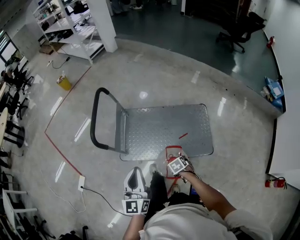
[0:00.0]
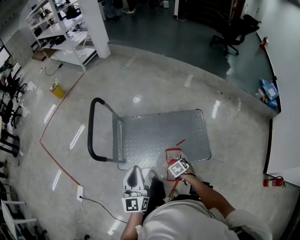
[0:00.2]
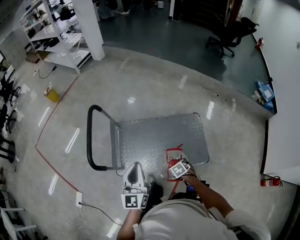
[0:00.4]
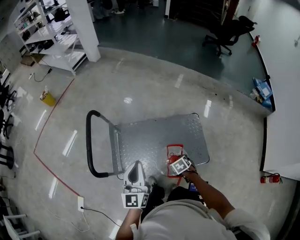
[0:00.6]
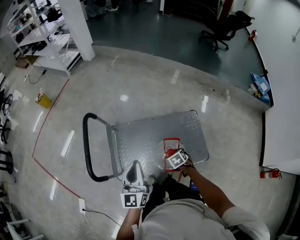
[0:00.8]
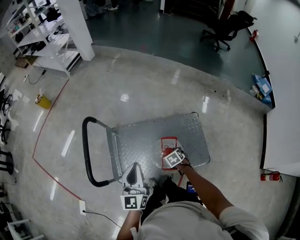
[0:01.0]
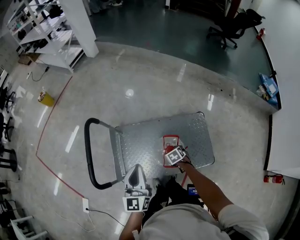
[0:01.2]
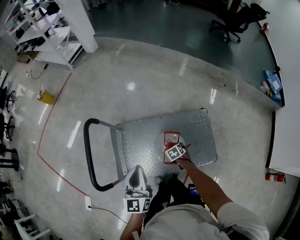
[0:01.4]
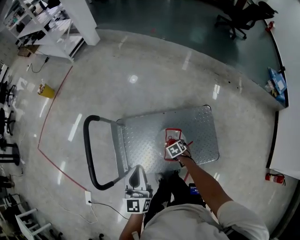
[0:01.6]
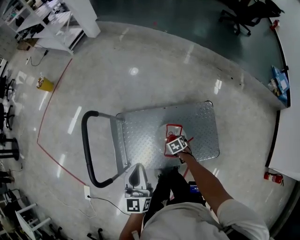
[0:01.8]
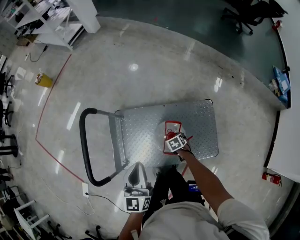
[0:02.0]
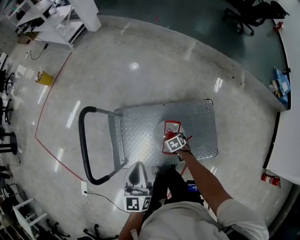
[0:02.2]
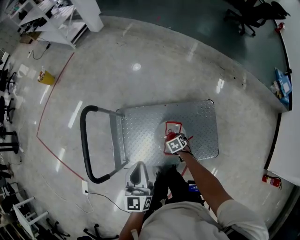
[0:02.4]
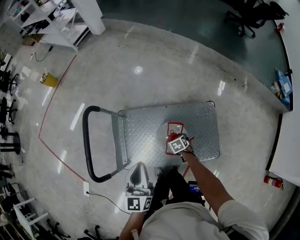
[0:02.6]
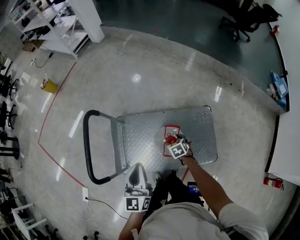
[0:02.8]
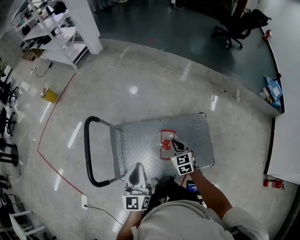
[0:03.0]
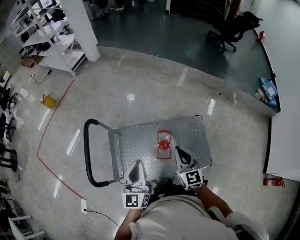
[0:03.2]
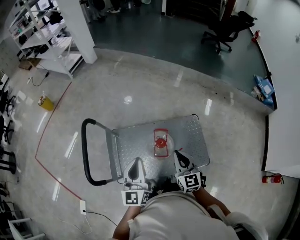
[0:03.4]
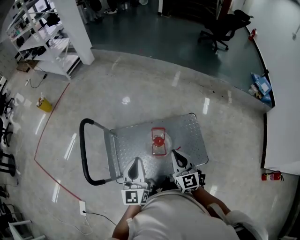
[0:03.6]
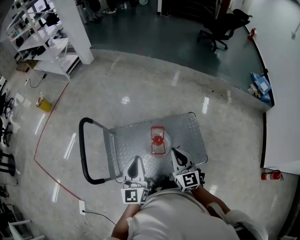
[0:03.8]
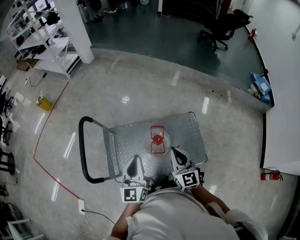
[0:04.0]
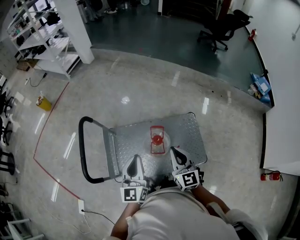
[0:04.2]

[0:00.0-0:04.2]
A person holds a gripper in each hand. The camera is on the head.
0:00.0 to 0:01.4: The right gripper moves roughly 35 cm; the left gripper moves about 30 cm.
0:01.4 to 0:02.8: The right gripper changes place by roughly 5 cm.
0:02.8 to 0:04.2: The right gripper heads upward and backward, covering about 35 cm, tilts its fingers approximately 60 degrees upward, and closes up. The left gripper goes some 5 cm upward and to the right.

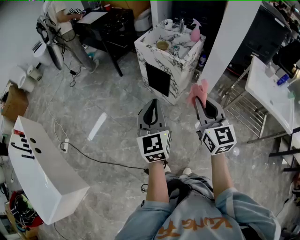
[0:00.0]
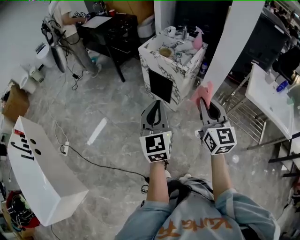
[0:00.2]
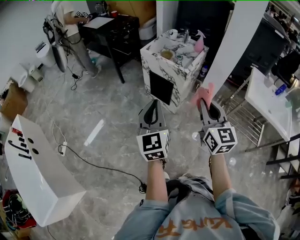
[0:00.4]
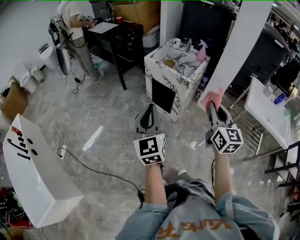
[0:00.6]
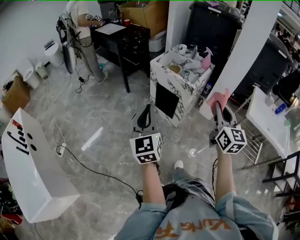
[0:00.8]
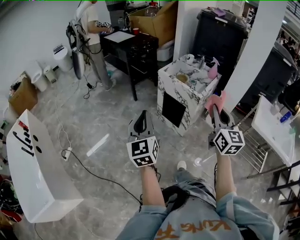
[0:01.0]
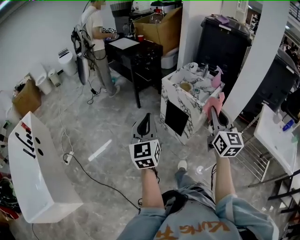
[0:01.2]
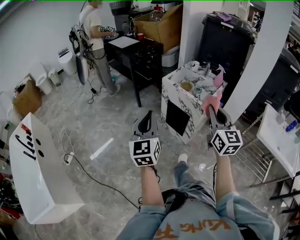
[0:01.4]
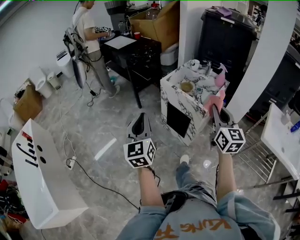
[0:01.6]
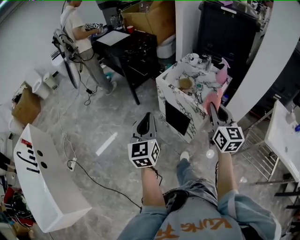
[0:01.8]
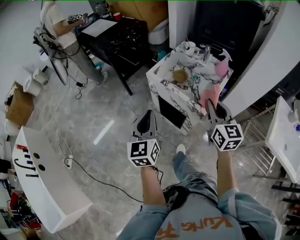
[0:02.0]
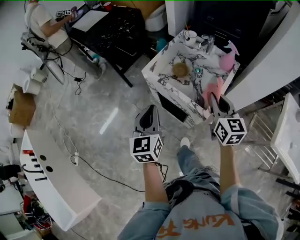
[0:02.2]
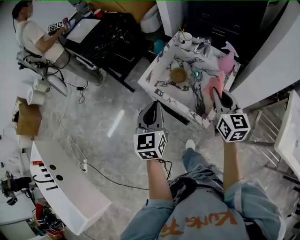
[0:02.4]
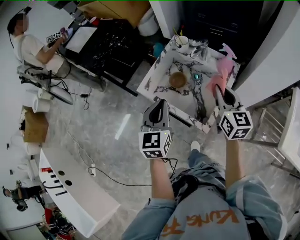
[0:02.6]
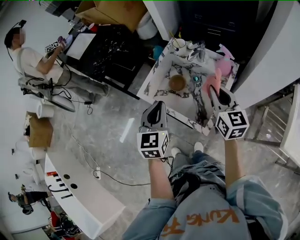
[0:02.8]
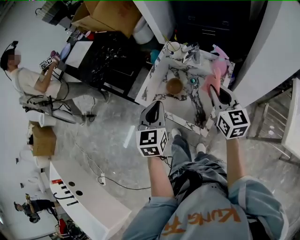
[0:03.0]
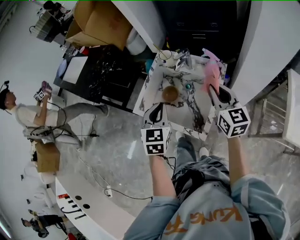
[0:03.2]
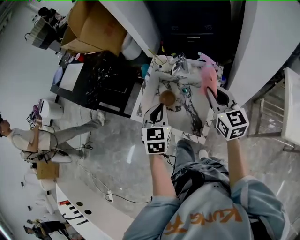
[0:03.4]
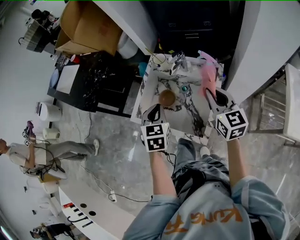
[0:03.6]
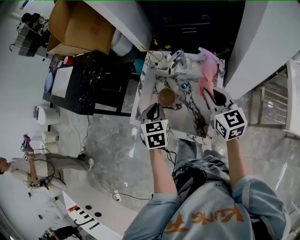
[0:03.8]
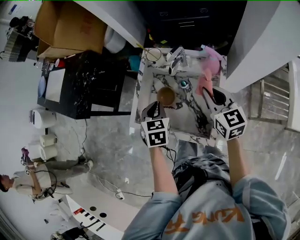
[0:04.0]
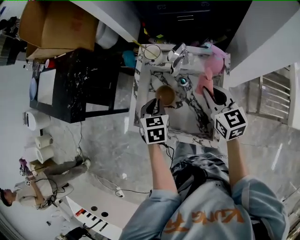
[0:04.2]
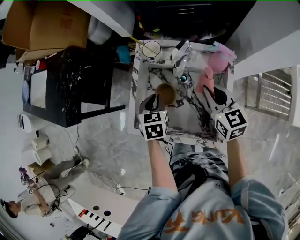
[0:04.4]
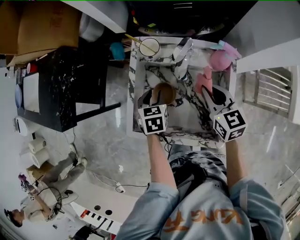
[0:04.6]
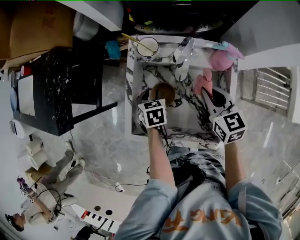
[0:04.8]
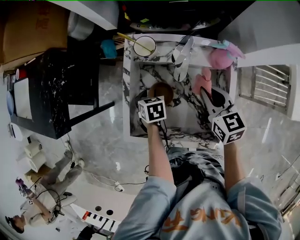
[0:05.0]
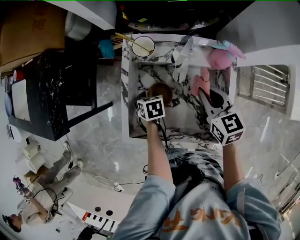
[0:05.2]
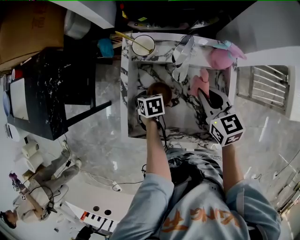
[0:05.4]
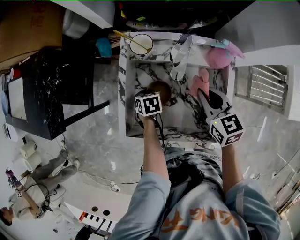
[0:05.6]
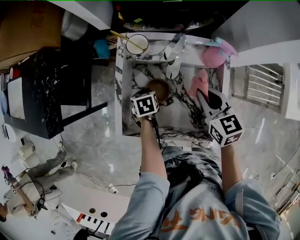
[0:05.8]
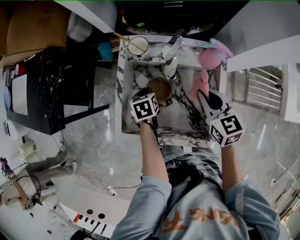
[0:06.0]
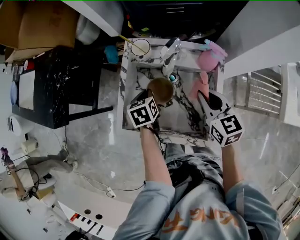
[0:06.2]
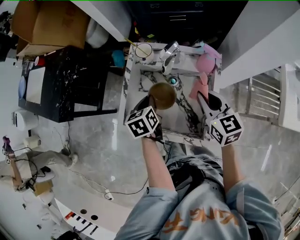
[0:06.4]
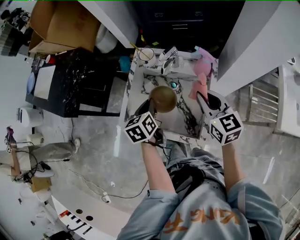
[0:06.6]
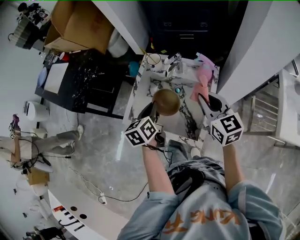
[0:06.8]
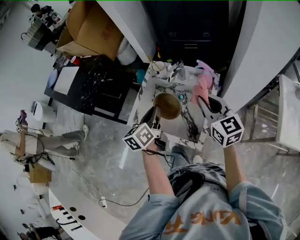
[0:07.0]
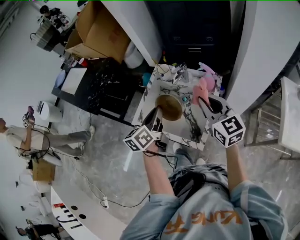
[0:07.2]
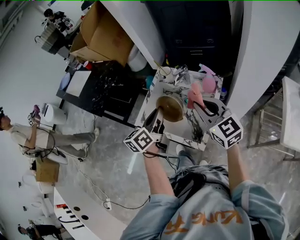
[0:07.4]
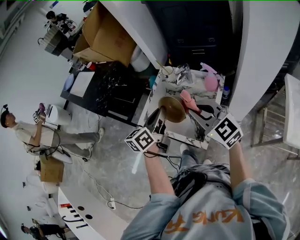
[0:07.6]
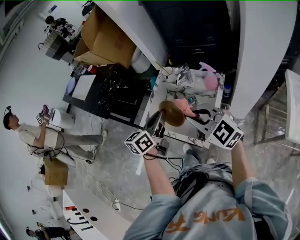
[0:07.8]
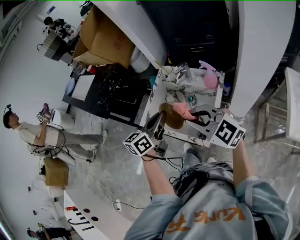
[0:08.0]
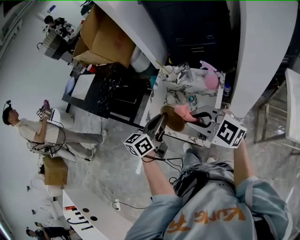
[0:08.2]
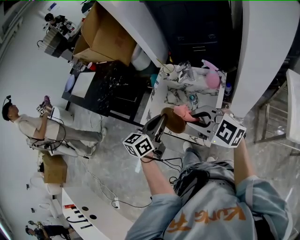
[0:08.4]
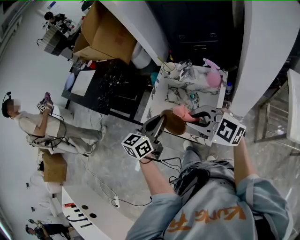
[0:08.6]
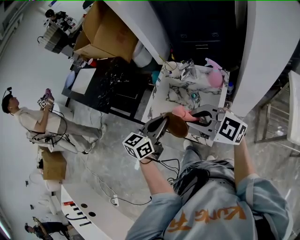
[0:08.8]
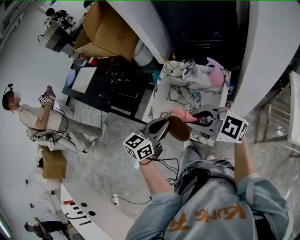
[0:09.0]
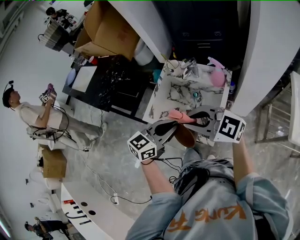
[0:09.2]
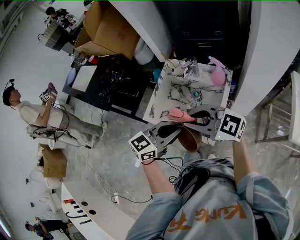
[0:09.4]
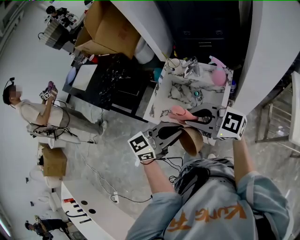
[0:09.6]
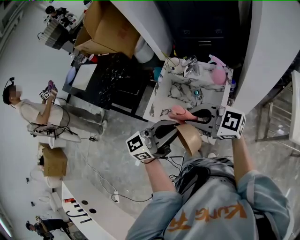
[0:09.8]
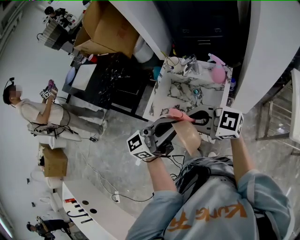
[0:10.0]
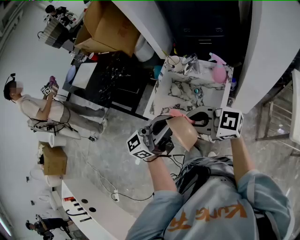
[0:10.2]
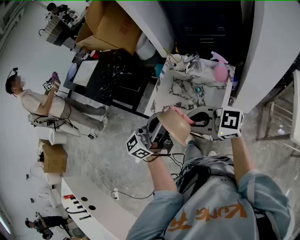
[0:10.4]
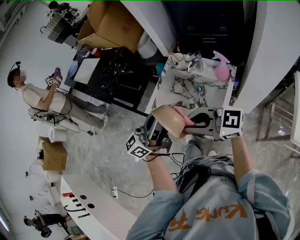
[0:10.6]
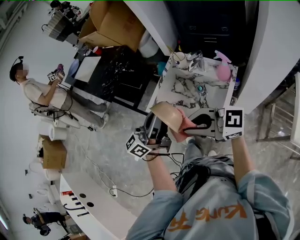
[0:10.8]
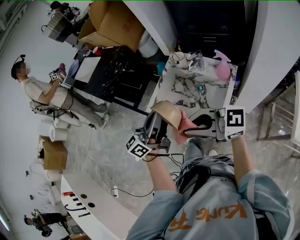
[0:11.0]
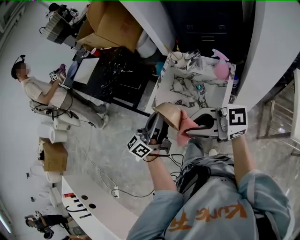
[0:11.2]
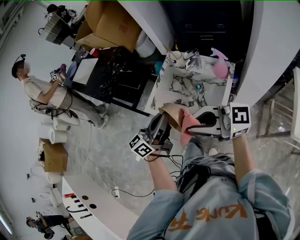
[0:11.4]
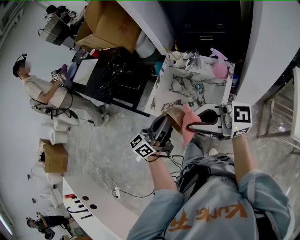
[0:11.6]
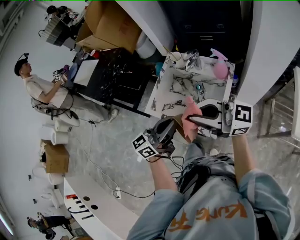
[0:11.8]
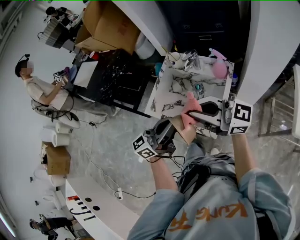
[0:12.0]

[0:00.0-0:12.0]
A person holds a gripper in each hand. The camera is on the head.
0:00.0 to 0:01.6: The right gripper travels forward by roughly 20 cm; the left gripper heads forward and to the left, covering about 20 cm.
0:01.6 to 0:03.0: Both grippers move forward and to the right, some 40 cm. The left gripper rotates about 30 degrees.
0:03.0 to 0:04.4: The right gripper travels downward and forward by about 15 cm; the left gripper travels downward and forward by about 25 cm, and swivels some 30 degrees.
0:04.4 to 0:06.0: The left gripper is displaced downward by some 10 cm, and opens and closes again.
0:06.0 to 0:07.6: The left gripper shifts roughly 35 cm upward and backward, and angles its fingers upward, by about 50 degrees; the right gripper is displaced upward and backward by some 25 cm, and rotates about 50 degrees.
0:07.6 to 0:09.0: The right gripper travels to the left by approximately 5 cm, and rotates roughly 30 degrees. Meanwhile the left gripper moves backward, about 5 cm, and turns by some 30 degrees.
0:09.0 to 0:10.4: The right gripper turns by about 20 degrees; the left gripper moves upward, approximately 10 cm, and points its fingers approximately 40 degrees further upward.
0:10.4 to 0:12.0: The right gripper changes place by approximately 5 cm, and turns by roughly 20 degrees. The left gripper travels downward by some 5 cm.

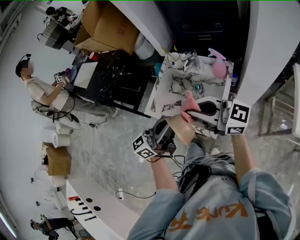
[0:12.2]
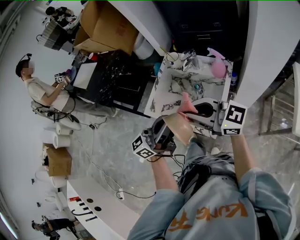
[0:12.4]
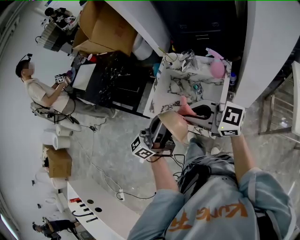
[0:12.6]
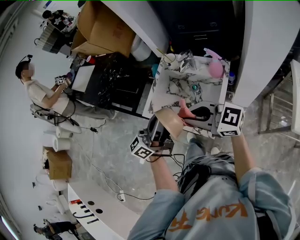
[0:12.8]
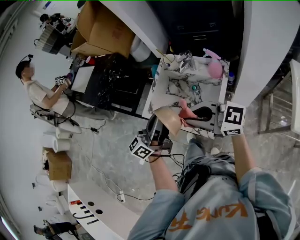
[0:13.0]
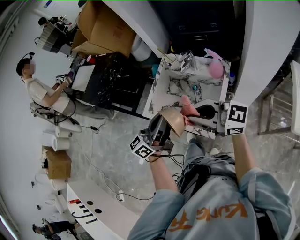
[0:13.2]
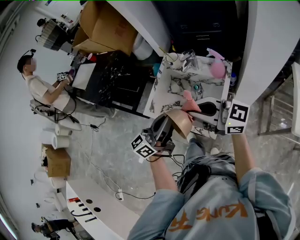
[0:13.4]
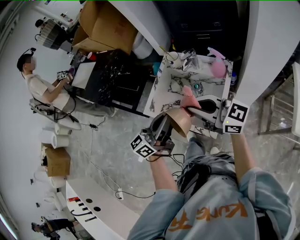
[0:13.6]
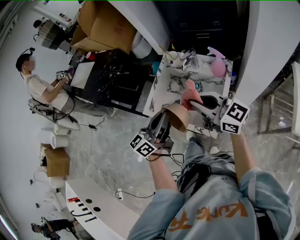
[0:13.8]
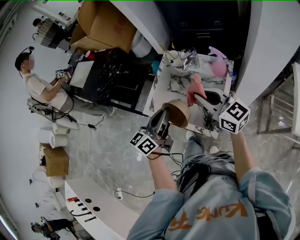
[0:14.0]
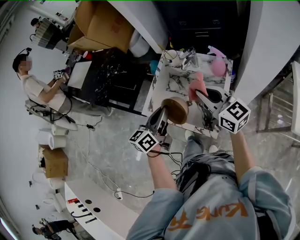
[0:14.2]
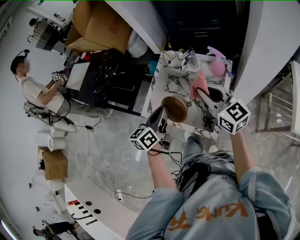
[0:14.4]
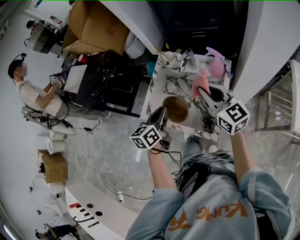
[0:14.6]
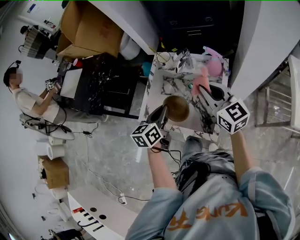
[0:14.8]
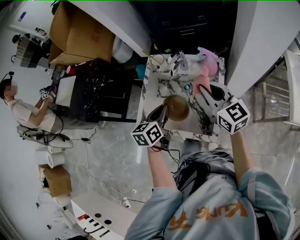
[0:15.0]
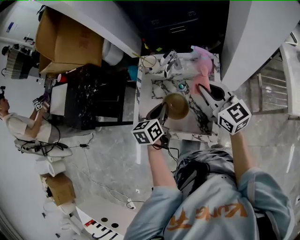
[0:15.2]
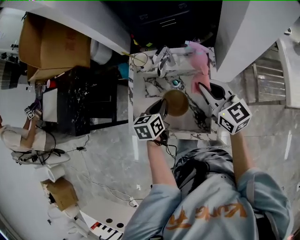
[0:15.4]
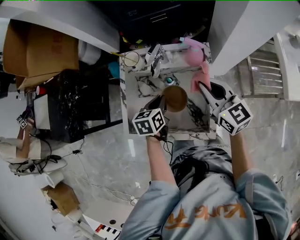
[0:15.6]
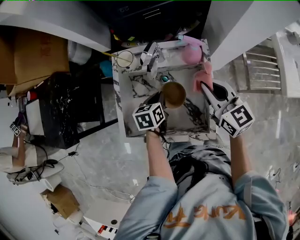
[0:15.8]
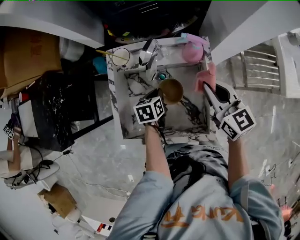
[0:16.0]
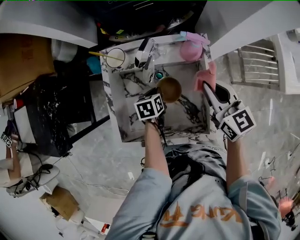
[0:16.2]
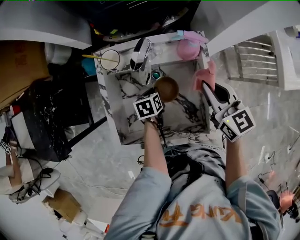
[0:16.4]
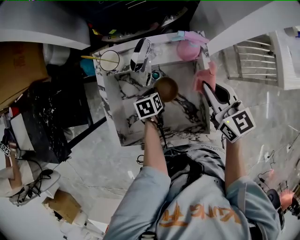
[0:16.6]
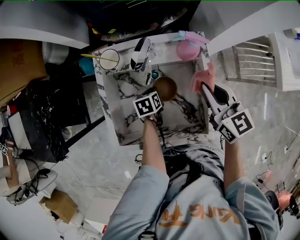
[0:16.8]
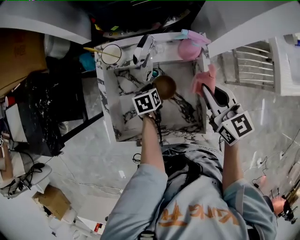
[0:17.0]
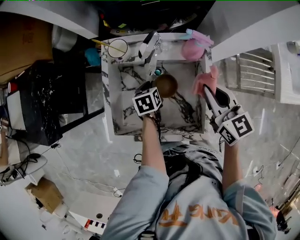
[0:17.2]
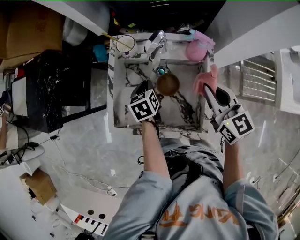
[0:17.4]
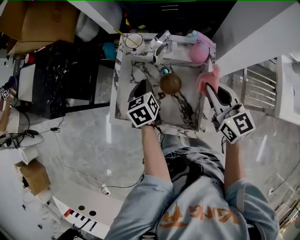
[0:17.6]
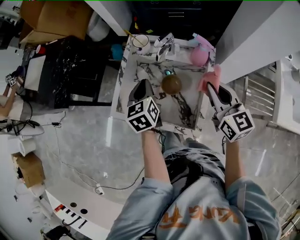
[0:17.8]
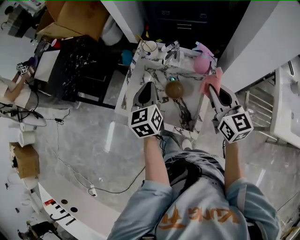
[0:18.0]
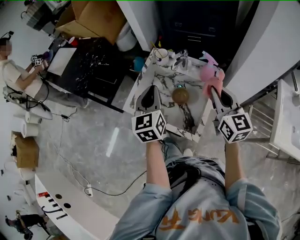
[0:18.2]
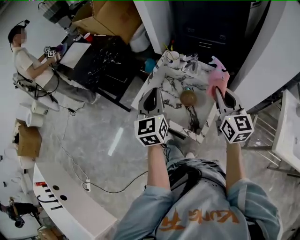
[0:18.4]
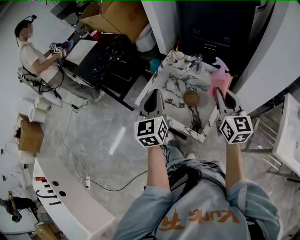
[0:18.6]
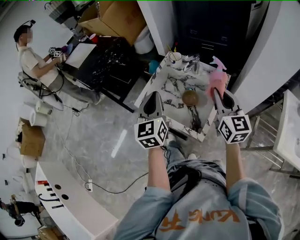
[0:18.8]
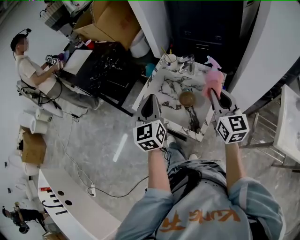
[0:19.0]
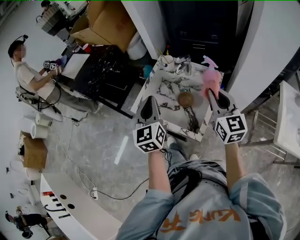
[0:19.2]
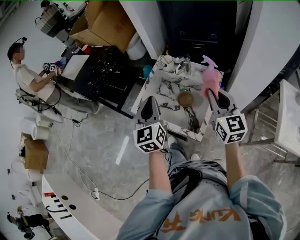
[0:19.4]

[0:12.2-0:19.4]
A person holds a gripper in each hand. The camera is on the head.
0:12.2 to 0:13.6: The grippers make only small movements.
0:13.6 to 0:15.0: The left gripper is displaced downward and forward by about 20 cm, and tips its fingers downward by about 40 degrees. The right gripper is displaced forward, to the right and downward by some 15 cm, and rotates about 40 degrees.
0:15.0 to 0:16.6: The right gripper is displaced downward by roughly 10 cm, and changes its angle by some 30 degrees; the left gripper travels downward by approximately 25 cm, and tips its fingers downward by approximately 30 degrees.
0:16.6 to 0:18.0: The left gripper is displaced upward by roughly 30 cm, and angles its fingers upward, by about 40 degrees; the right gripper shifts some 10 cm upward.
0:18.0 to 0:19.4: The left gripper shifts roughly 10 cm backward and upward. Meanwhile the right gripper ends up some 5 cm from where it was.
